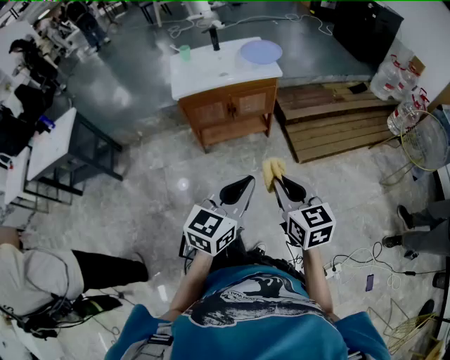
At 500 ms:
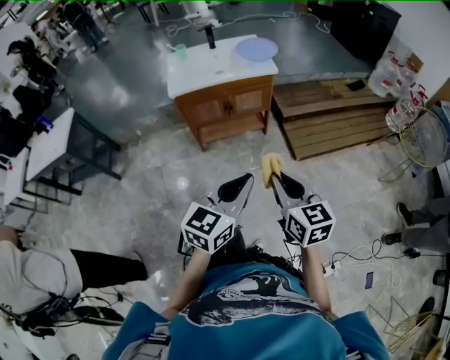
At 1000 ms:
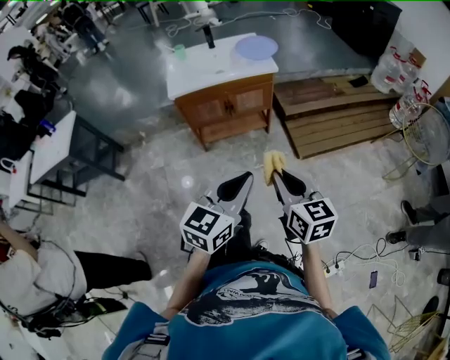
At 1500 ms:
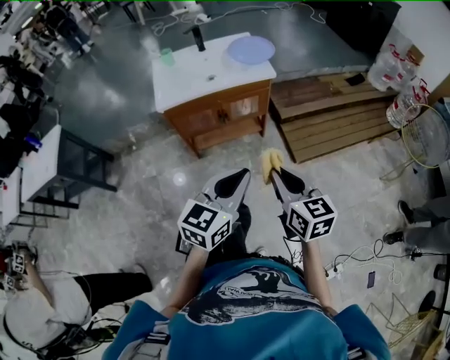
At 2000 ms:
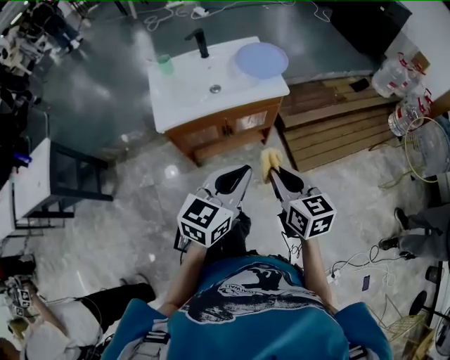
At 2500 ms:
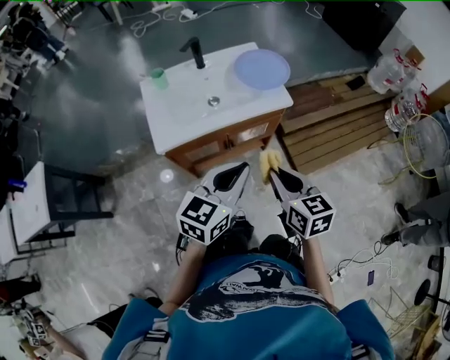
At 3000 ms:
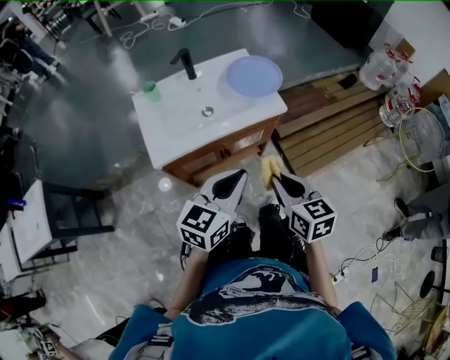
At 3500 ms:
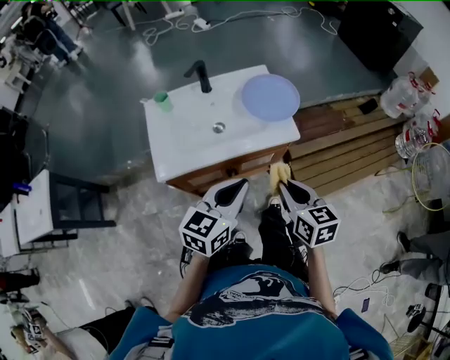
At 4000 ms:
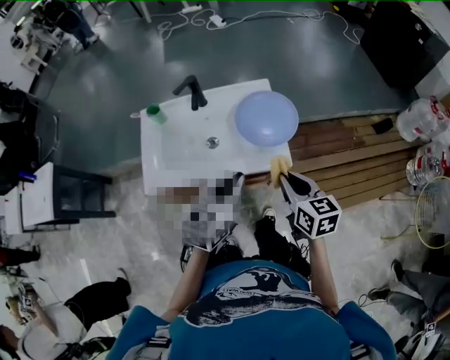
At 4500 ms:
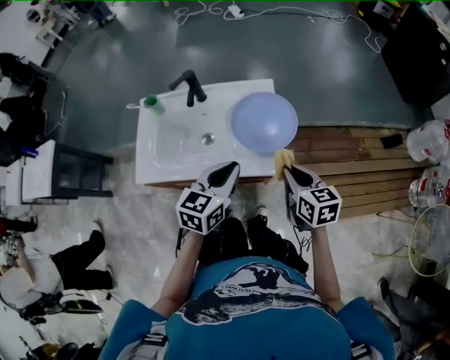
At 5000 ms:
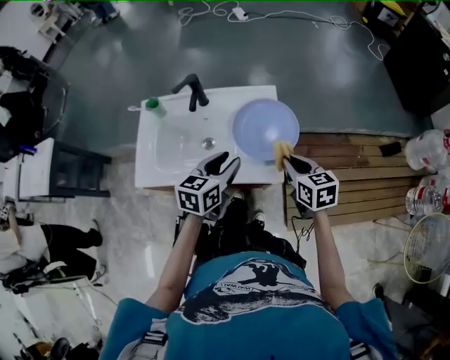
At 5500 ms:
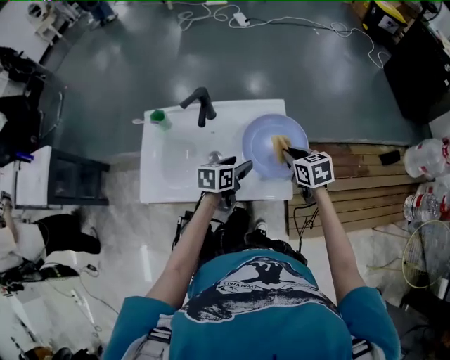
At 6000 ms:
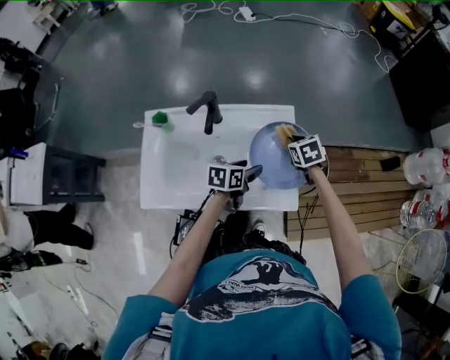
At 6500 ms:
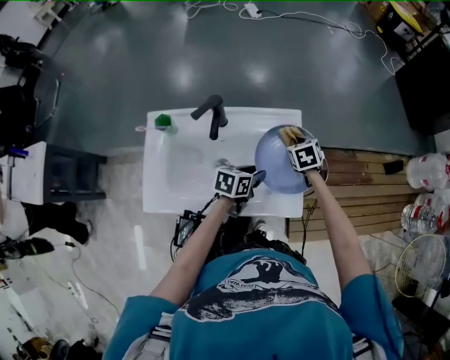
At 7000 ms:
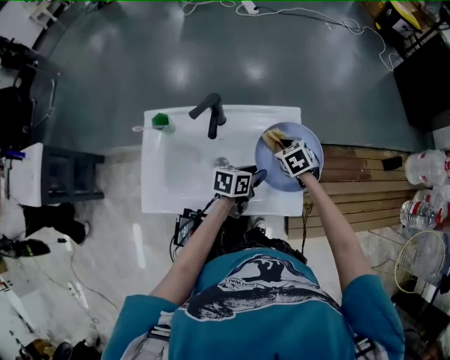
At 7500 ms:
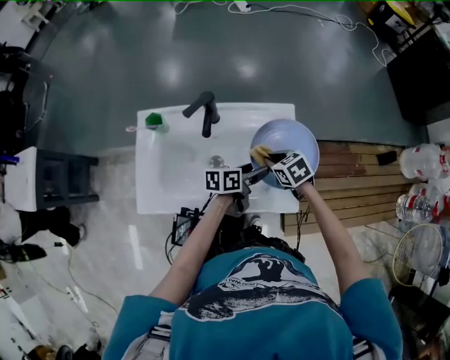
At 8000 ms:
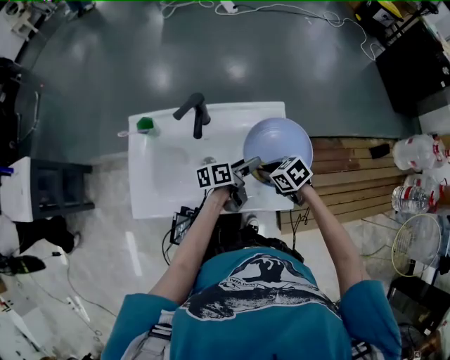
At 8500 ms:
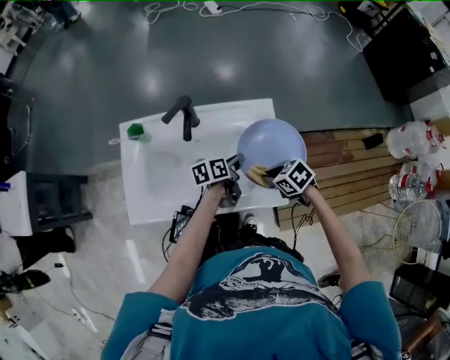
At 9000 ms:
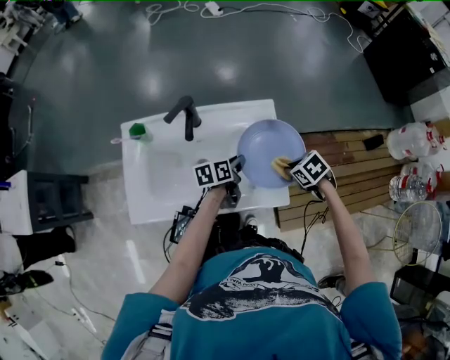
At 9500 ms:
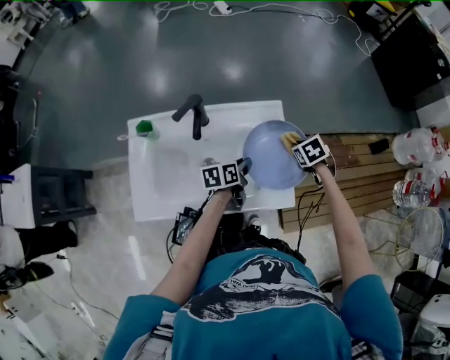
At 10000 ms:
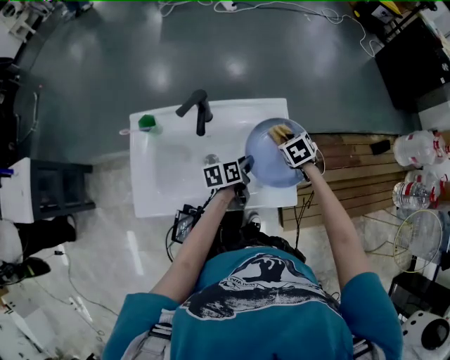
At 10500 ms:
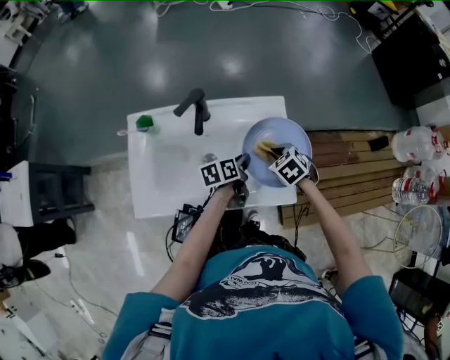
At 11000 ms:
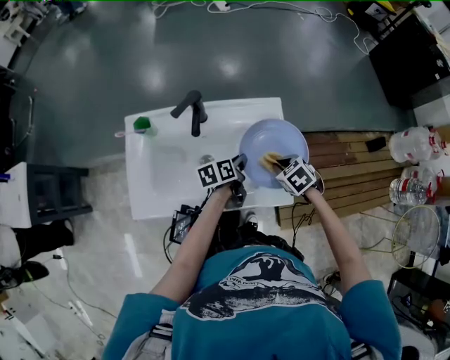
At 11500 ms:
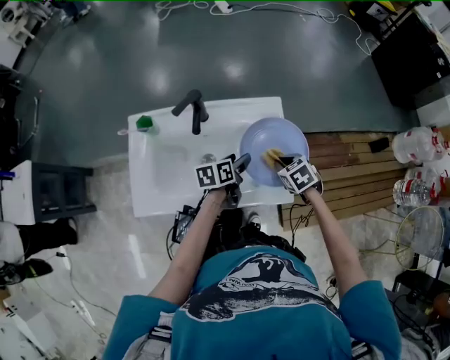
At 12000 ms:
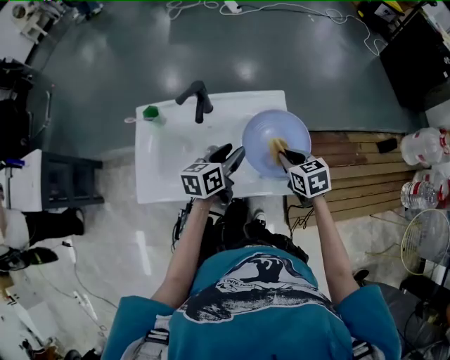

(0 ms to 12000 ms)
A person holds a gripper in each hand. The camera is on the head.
0 ms - 2000 ms: Both grippers move forward, about 25 cm.
2000 ms - 4000 ms: Both grippers travel together forward, some 30 cm.
4000 ms - 6000 ms: The left gripper moves downward and forward, approximately 30 cm, changes its angle by roughly 40 degrees, and opens its fingers. Meanwhile the right gripper travels forward and downward by about 35 cm, and tips its fingers downward by some 30 degrees.
6000 ms - 8000 ms: The right gripper moves approximately 15 cm, and turns by roughly 30 degrees. The left gripper changes its angle by some 30 degrees.
8000 ms - 10000 ms: The left gripper closes up, while the right gripper shifts by approximately 10 cm, and rotates some 30 degrees.
10000 ms - 12000 ms: The left gripper travels upward by approximately 10 cm, and rotates some 20 degrees; the right gripper travels backward and upward by approximately 15 cm, and changes its angle by some 30 degrees.

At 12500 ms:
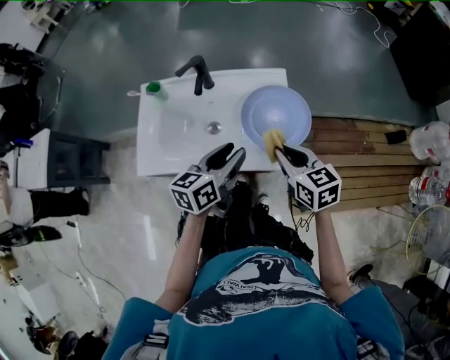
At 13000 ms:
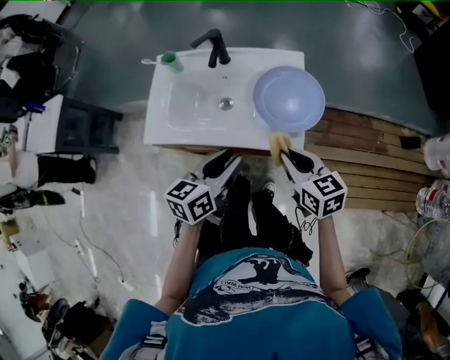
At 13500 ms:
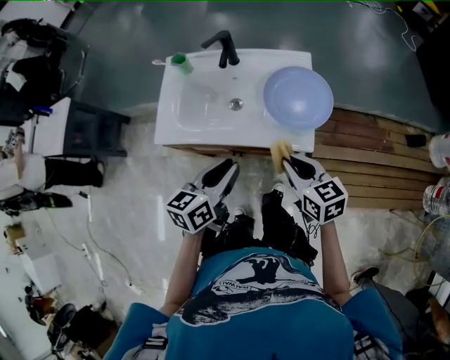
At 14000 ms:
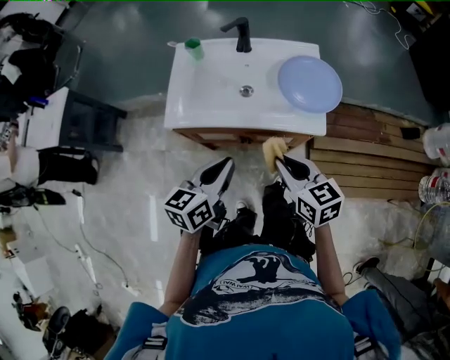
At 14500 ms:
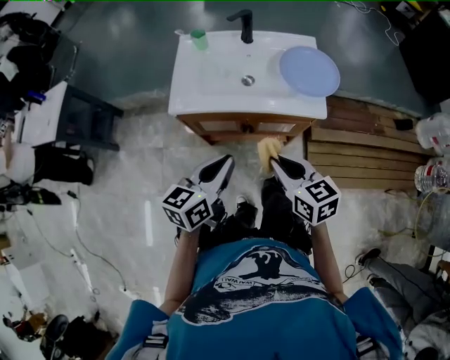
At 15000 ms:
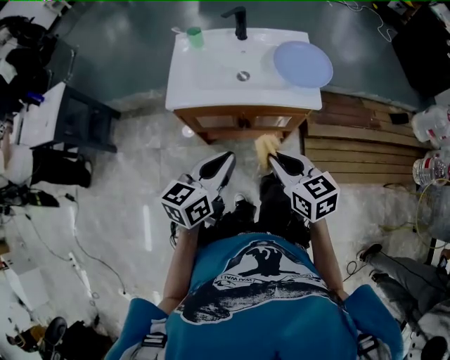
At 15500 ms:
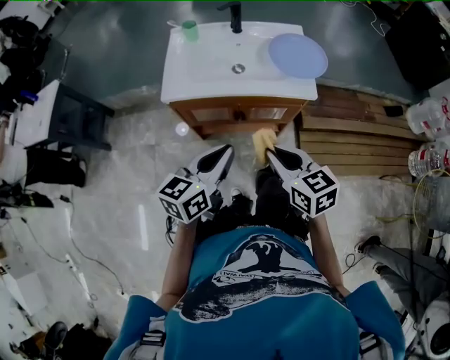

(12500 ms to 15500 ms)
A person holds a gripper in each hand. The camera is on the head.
12500 ms - 14000 ms: Both grippers move backward and to the left, approximately 20 cm. The left gripper closes.
14000 ms - 15500 ms: Both grippers move backward, some 10 cm.

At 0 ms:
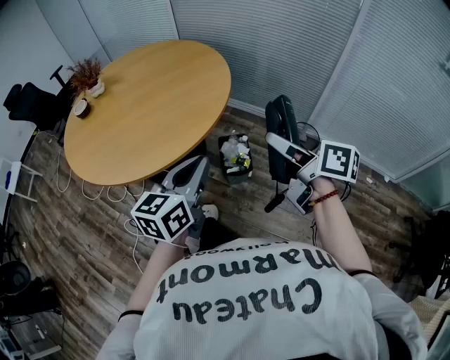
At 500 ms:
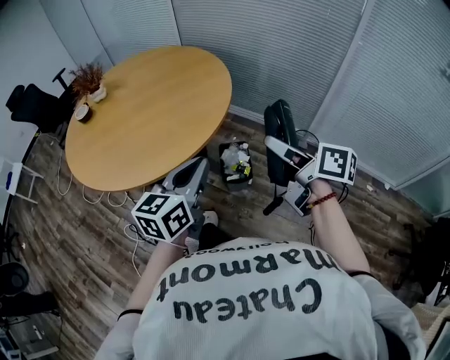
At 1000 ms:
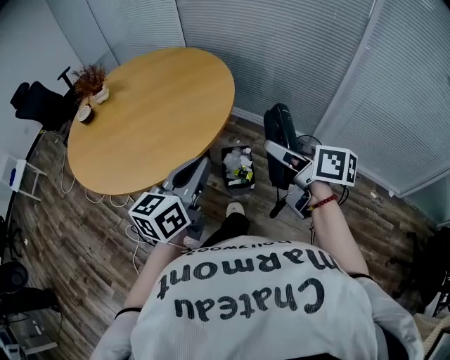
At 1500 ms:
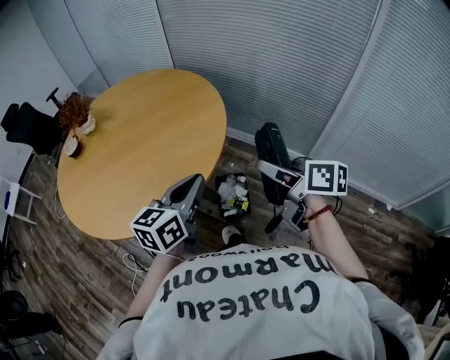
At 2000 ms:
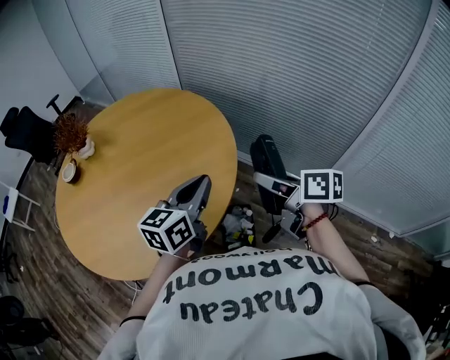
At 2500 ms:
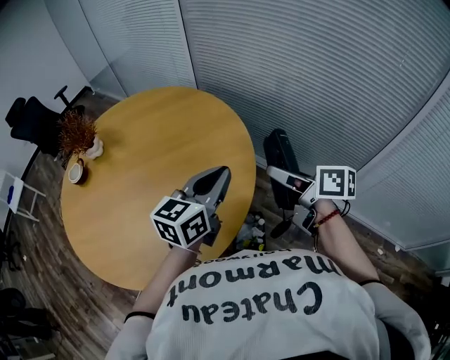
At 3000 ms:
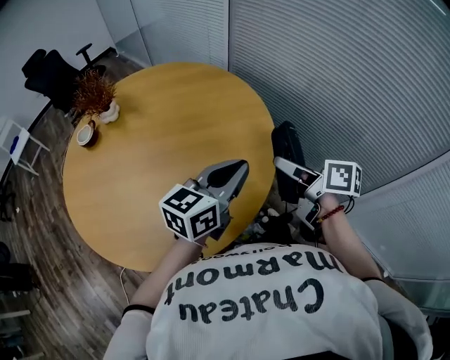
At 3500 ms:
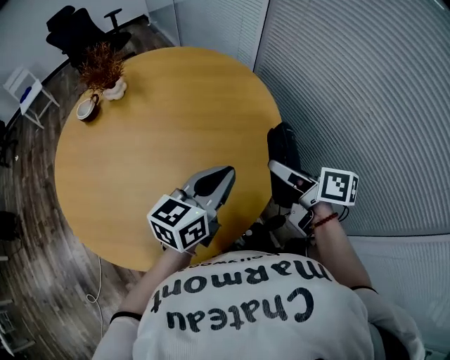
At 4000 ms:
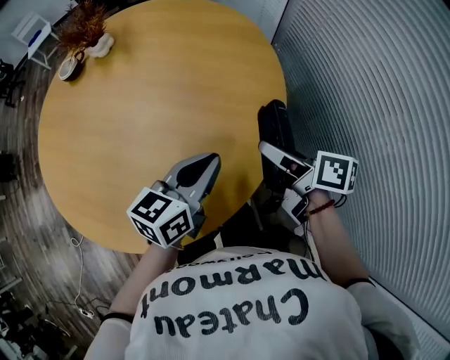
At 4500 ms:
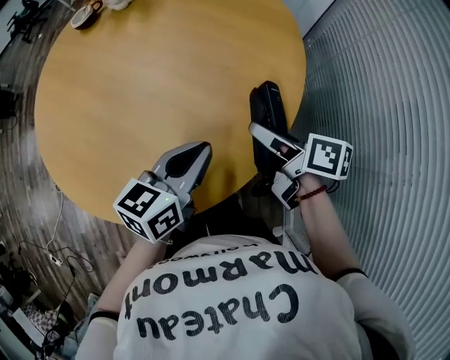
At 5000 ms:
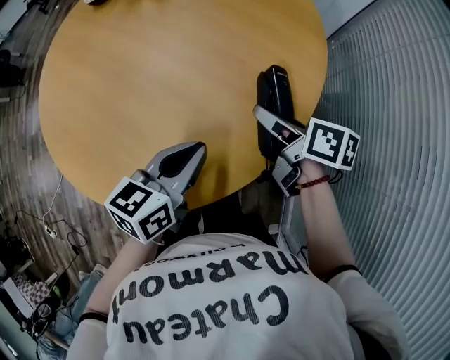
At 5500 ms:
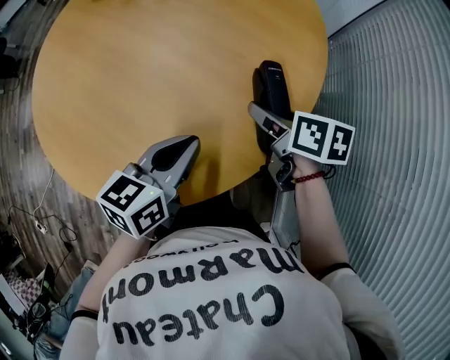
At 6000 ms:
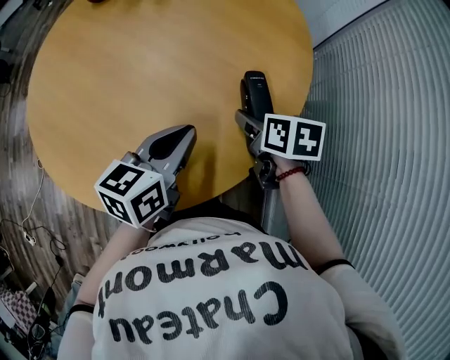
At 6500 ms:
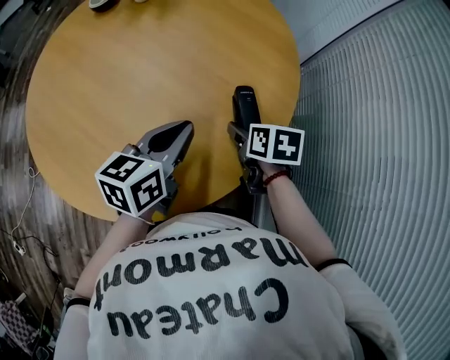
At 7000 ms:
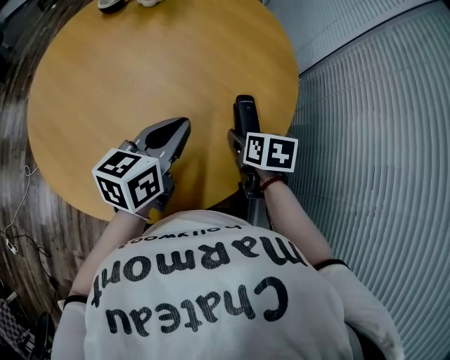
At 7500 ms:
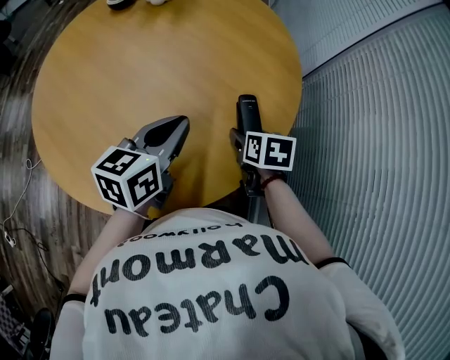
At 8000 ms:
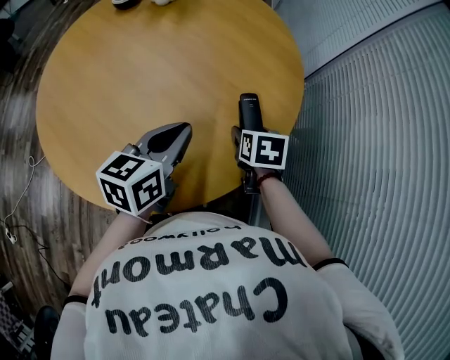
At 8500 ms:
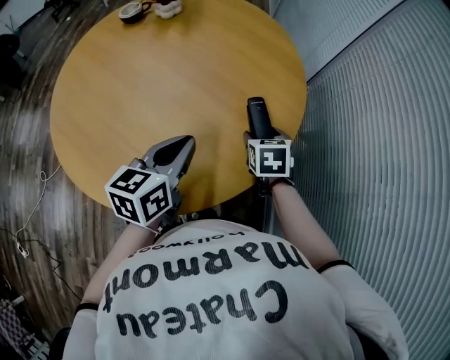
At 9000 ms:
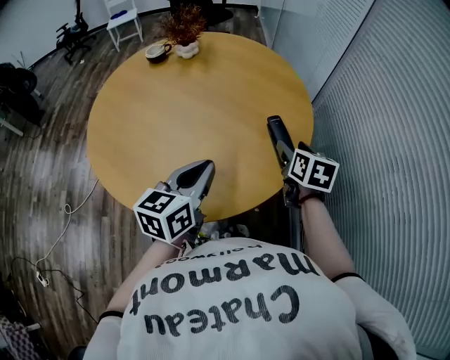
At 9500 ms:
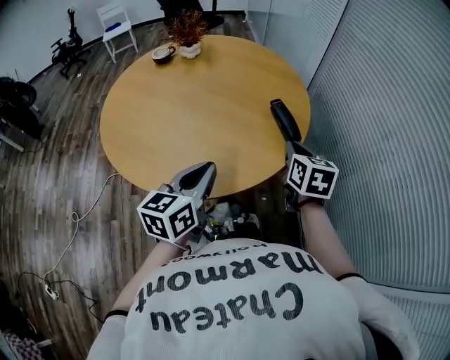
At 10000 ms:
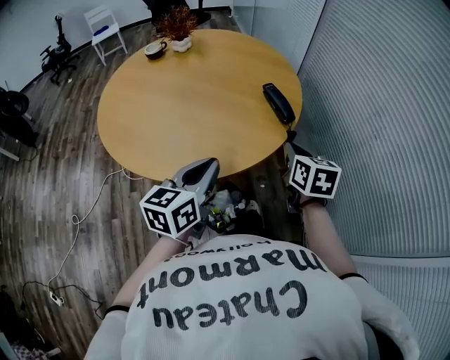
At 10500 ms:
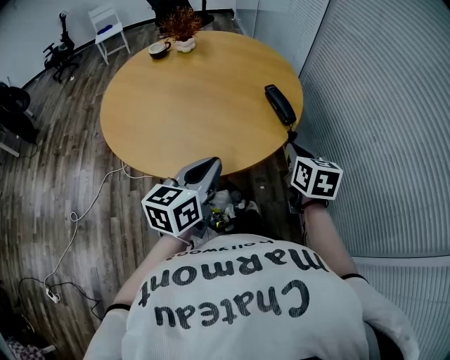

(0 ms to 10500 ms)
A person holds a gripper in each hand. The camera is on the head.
0 ms - 2000 ms: Both grippers move forward, roughly 40 cm.
2000 ms - 4000 ms: The right gripper moves approximately 25 cm, and rotates some 40 degrees. Meanwhile the left gripper shifts by approximately 15 cm, and rotates some 30 degrees.
4000 ms - 6500 ms: The right gripper shifts approximately 15 cm forward and downward, and points its fingers approximately 30 degrees further downward. Meanwhile the left gripper heads forward, covering some 5 cm, and turns by approximately 20 degrees.
6500 ms - 8500 ms: The left gripper moves backward, some 5 cm. Meanwhile the right gripper changes its angle by approximately 30 degrees.
8500 ms - 10500 ms: The left gripper heads backward, covering approximately 25 cm; the right gripper shifts approximately 30 cm backward and upward, swivels some 30 degrees, and closes.

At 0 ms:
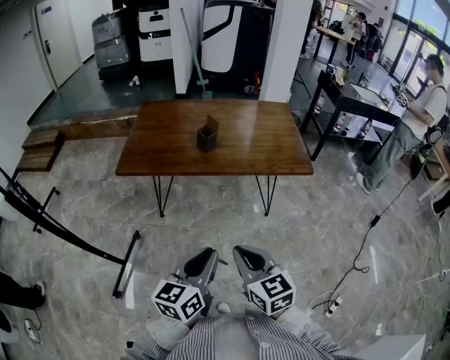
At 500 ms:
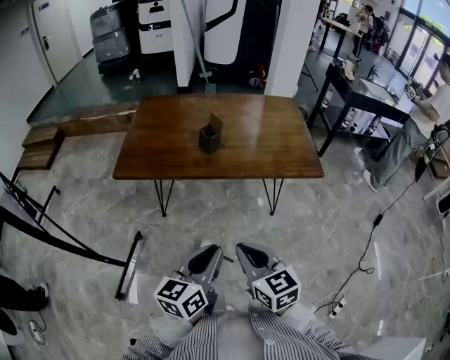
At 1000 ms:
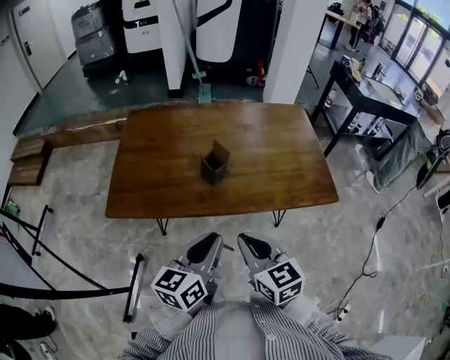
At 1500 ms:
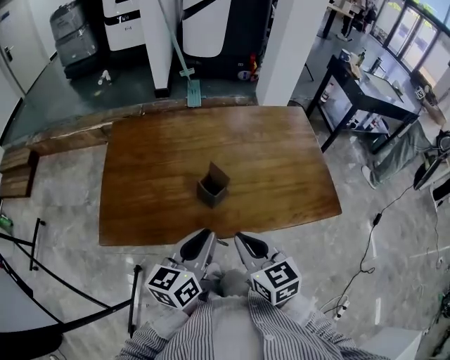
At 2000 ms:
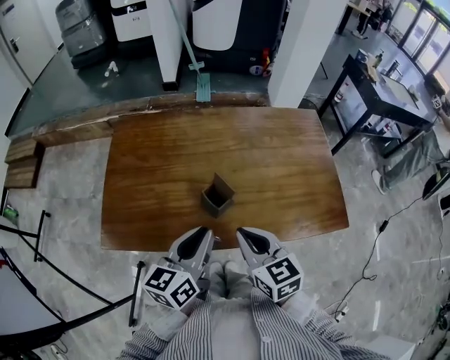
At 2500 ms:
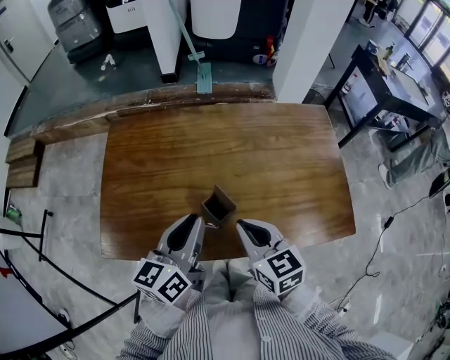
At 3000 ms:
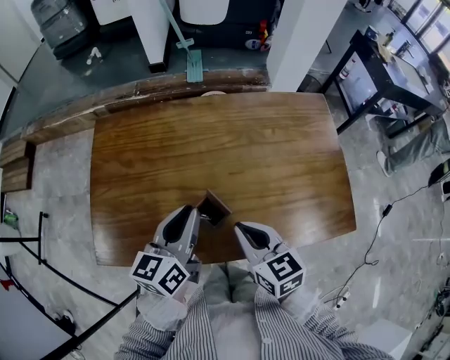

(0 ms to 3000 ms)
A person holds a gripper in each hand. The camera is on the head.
0 ms - 1500 ms: The grippers both shift forward by roughly 40 cm.
1500 ms - 3000 ms: The two grippers go roughly 15 cm forward.
